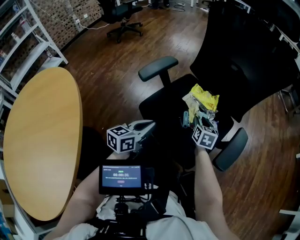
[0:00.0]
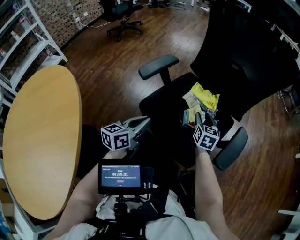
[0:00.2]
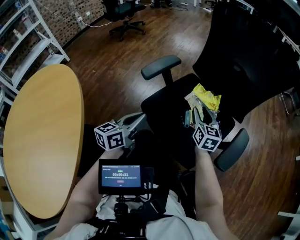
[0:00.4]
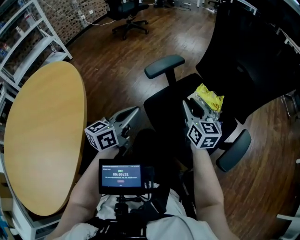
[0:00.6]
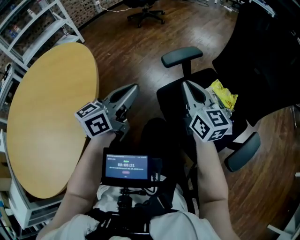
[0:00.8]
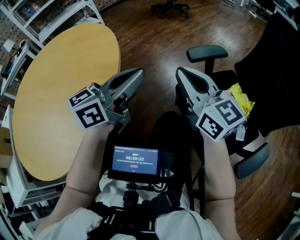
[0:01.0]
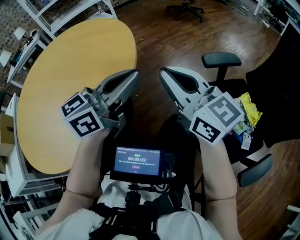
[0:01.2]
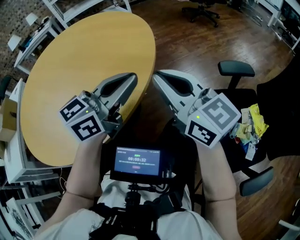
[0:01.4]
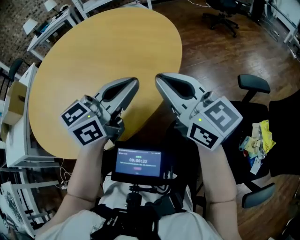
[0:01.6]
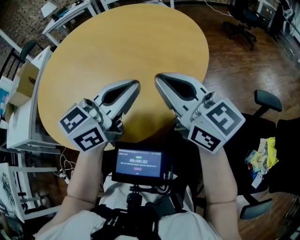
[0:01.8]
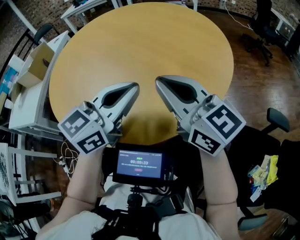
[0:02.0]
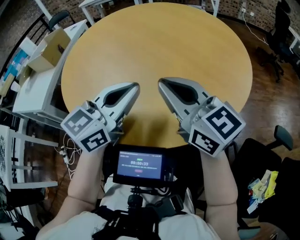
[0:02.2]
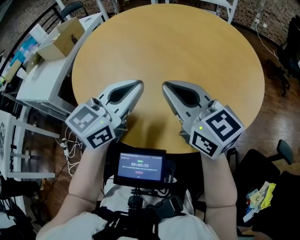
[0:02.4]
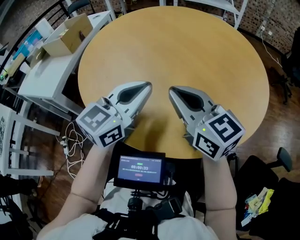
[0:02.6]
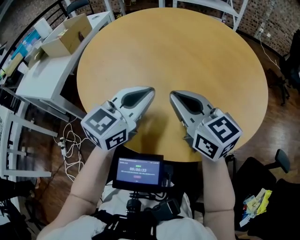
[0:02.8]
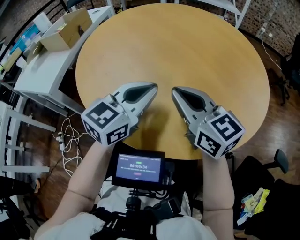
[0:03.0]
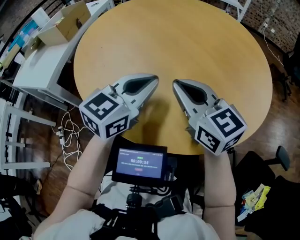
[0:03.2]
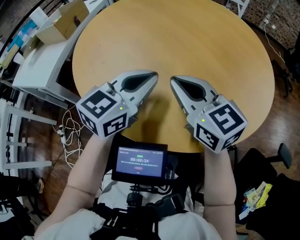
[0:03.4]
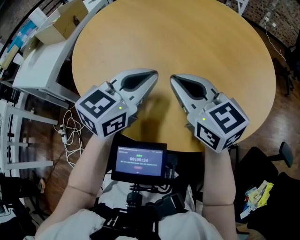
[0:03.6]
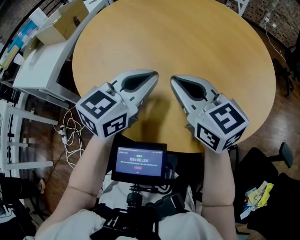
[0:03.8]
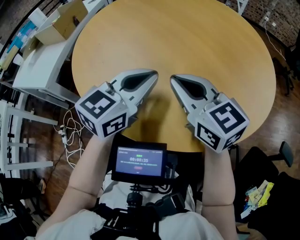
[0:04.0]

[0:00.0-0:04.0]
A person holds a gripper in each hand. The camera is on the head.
0.0 to 1.4 s: The left gripper moves some 35 cm, and turns by about 40 degrees. Meanwhile the right gripper changes place by roughly 60 cm, tilts its fingers about 40 degrees upward, and closes.
1.4 to 2.6 s: The left gripper moves about 40 cm, and swivels approximately 40 degrees. Meanwhile the right gripper ends up approximately 40 cm from where it was, and turns by roughly 30 degrees.
2.6 to 4.0 s: The grippers move only a little.

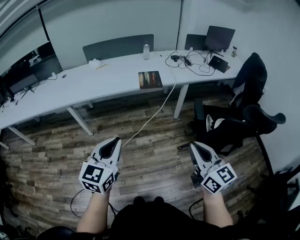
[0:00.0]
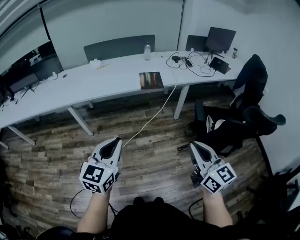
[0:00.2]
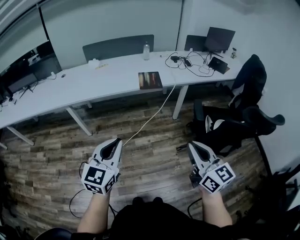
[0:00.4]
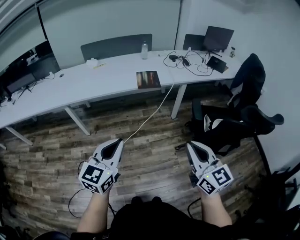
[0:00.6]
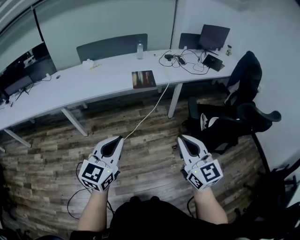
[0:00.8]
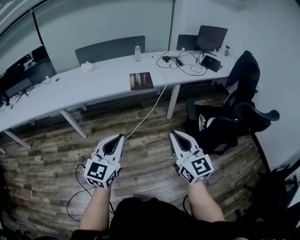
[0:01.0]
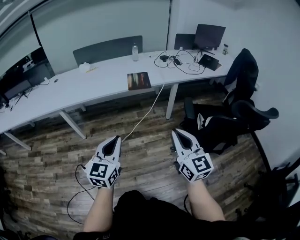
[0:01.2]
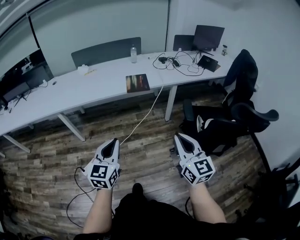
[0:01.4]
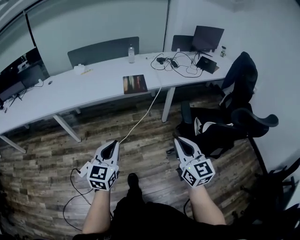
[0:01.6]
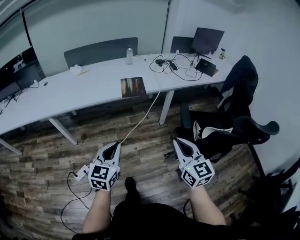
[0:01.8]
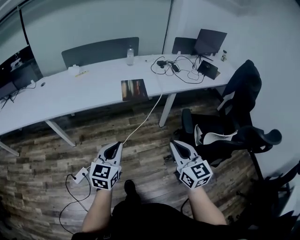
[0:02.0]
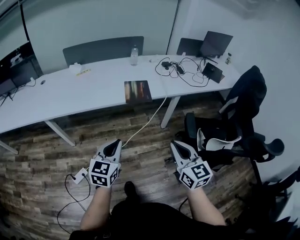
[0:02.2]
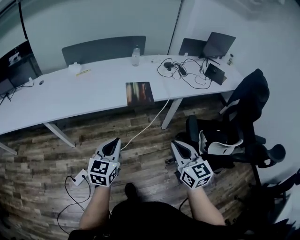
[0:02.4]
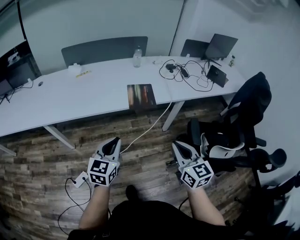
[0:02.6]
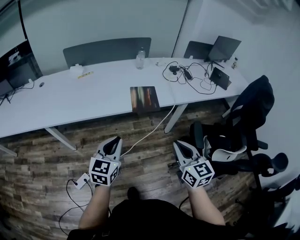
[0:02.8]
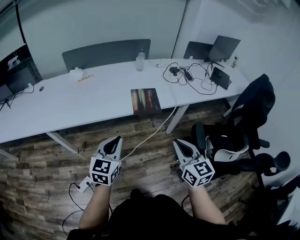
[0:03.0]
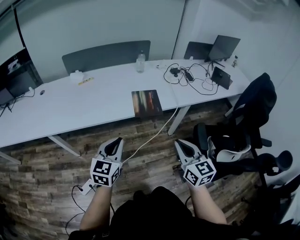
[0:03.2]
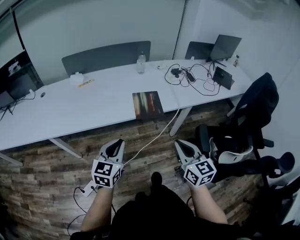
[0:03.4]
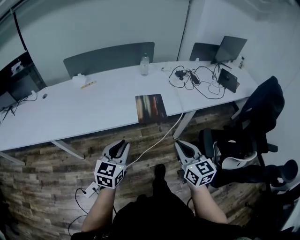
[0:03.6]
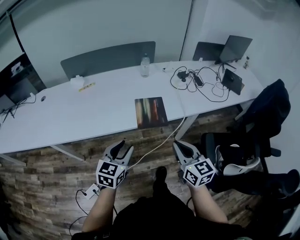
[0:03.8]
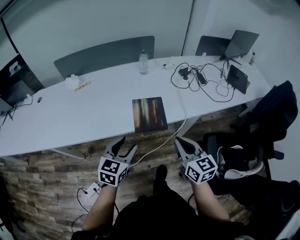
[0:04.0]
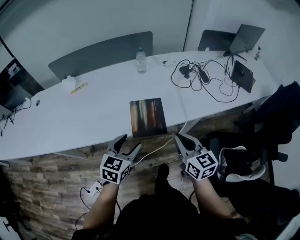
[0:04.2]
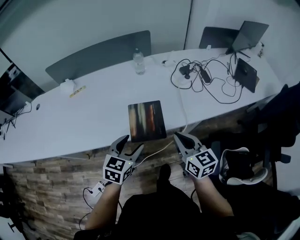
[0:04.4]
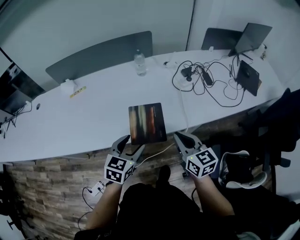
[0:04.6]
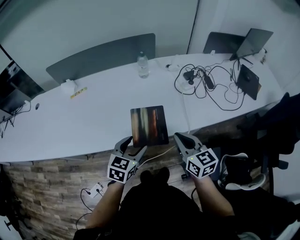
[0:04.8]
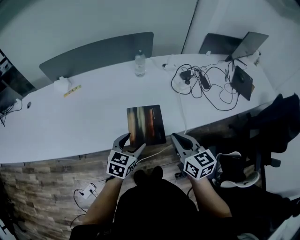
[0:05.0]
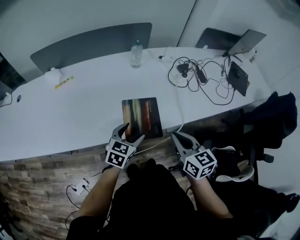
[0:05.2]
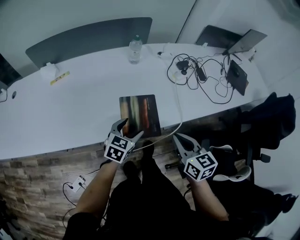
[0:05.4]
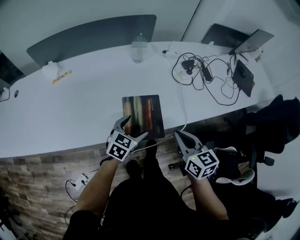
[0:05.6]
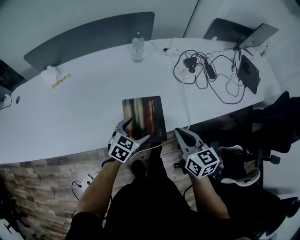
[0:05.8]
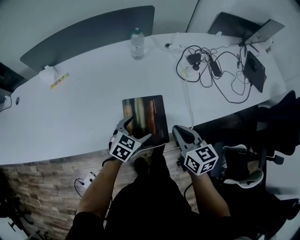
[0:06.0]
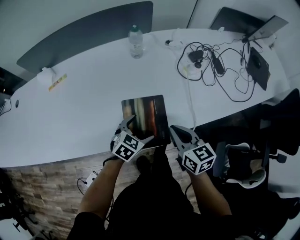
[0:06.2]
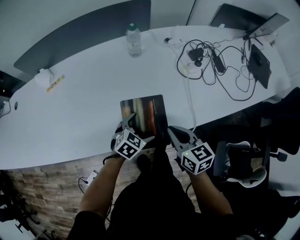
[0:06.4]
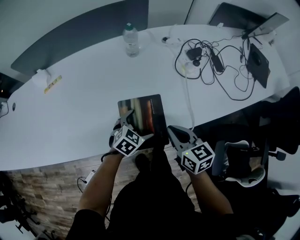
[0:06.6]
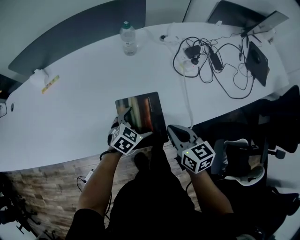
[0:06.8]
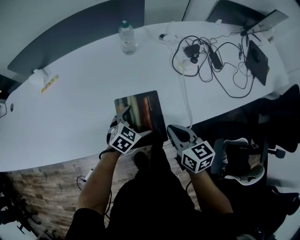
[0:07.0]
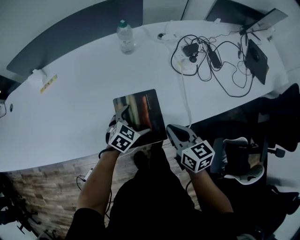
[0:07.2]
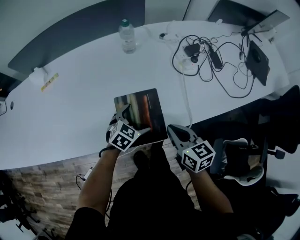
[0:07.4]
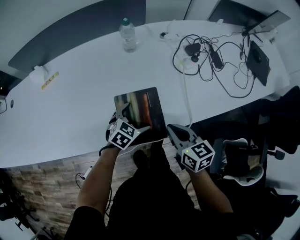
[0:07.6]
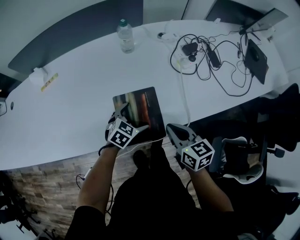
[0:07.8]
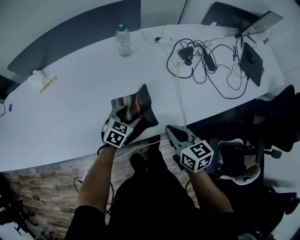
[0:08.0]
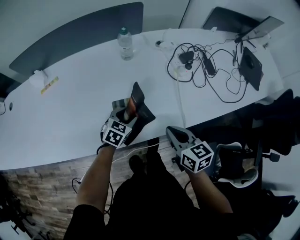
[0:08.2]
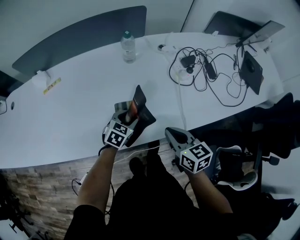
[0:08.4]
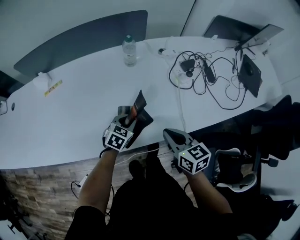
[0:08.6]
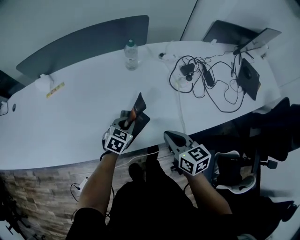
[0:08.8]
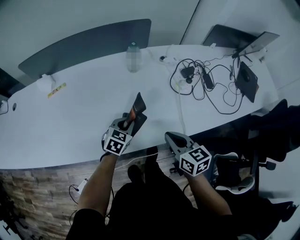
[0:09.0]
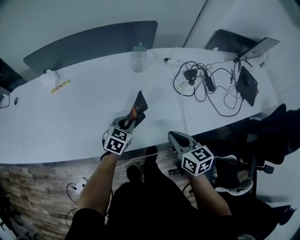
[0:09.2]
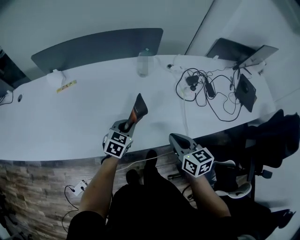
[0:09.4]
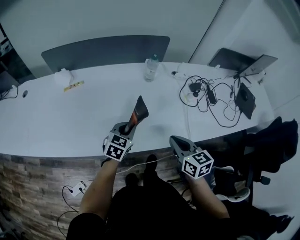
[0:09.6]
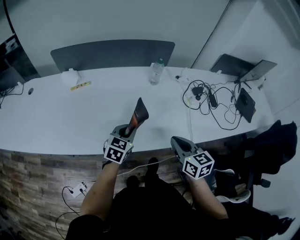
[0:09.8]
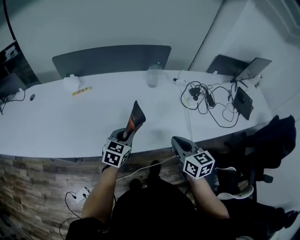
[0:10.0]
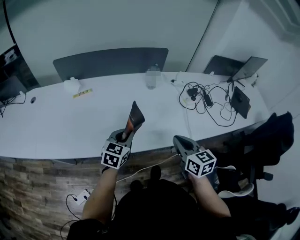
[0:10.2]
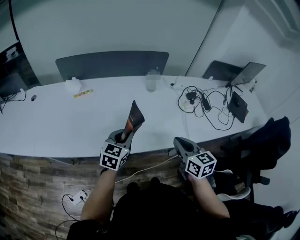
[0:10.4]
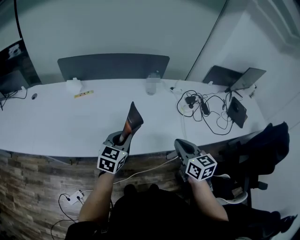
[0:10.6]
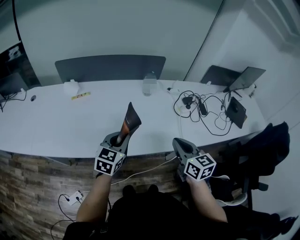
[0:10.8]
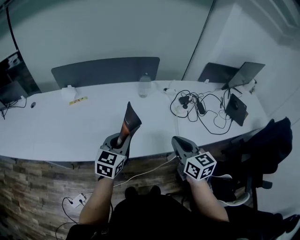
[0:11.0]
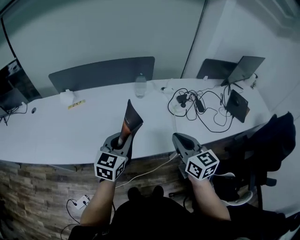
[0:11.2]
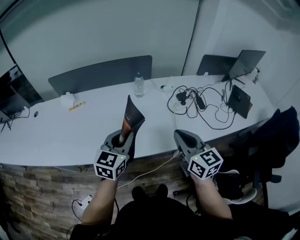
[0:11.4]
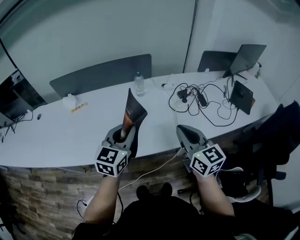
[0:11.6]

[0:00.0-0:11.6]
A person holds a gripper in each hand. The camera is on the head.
0.0 to 1.4 s: The left gripper travels downward and to the right by some 10 cm. The right gripper is displaced forward by some 5 cm.
1.4 to 2.8 s: Both grippers move forward, about 25 cm.
2.8 to 4.4 s: The left gripper heads forward and to the right, covering roughly 30 cm, and opens its fingers. Meanwhile the right gripper is displaced forward by roughly 30 cm.
4.4 to 5.8 s: The left gripper is displaced downward and forward by approximately 15 cm. Meanwhile the right gripper heads forward and downward, covering about 10 cm.
5.8 to 7.2 s: The right gripper shifts approximately 5 cm downward. The left gripper heads downward and forward, covering roughly 10 cm.
7.2 to 8.8 s: The left gripper ends up roughly 5 cm from where it was, and closes its fingers.
8.8 to 10.2 s: The right gripper travels upward, backward and to the left by approximately 15 cm; the left gripper travels upward, to the left and backward by roughly 20 cm, and turns by about 20 degrees.
10.2 to 11.6 s: The right gripper heads to the right and upward, covering roughly 15 cm; the left gripper moves upward and to the right, some 20 cm.

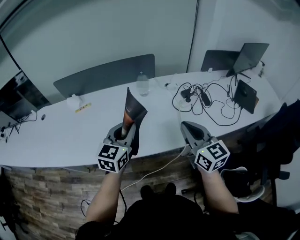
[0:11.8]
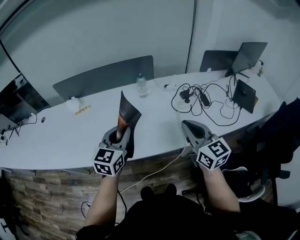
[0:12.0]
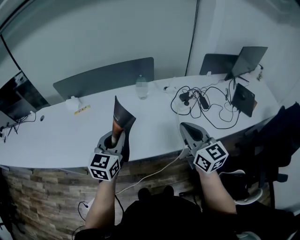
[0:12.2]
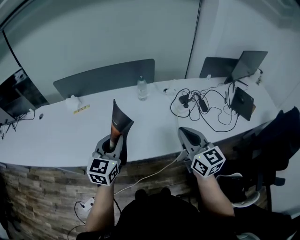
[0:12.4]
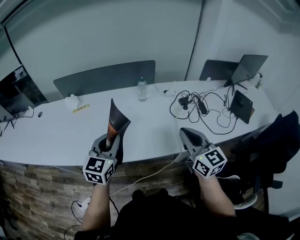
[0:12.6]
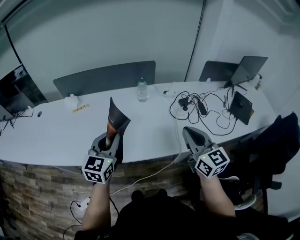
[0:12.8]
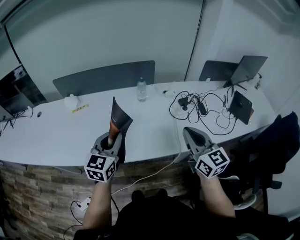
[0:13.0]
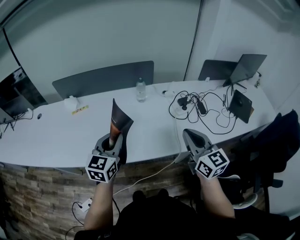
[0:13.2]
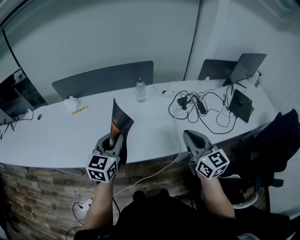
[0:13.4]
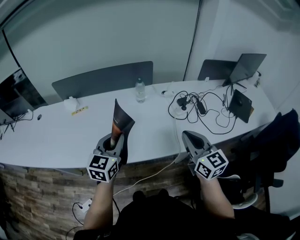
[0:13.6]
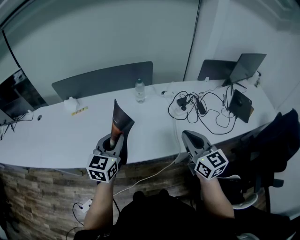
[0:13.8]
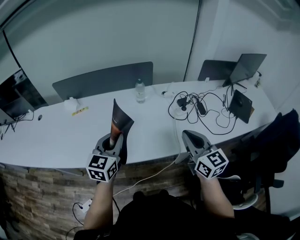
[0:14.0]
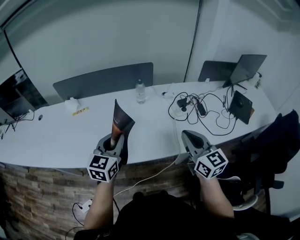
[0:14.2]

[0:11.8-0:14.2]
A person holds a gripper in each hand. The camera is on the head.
11.8 to 13.0 s: The left gripper heads to the left, covering some 5 cm.
13.0 to 14.2 s: The grippers move only a little.

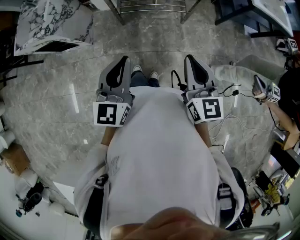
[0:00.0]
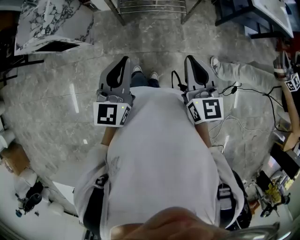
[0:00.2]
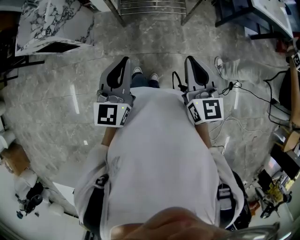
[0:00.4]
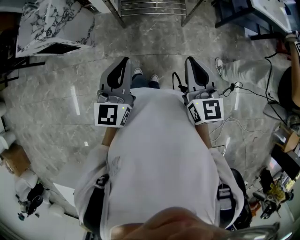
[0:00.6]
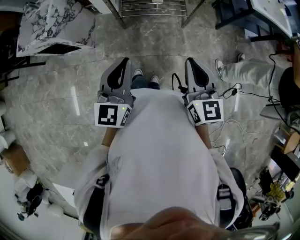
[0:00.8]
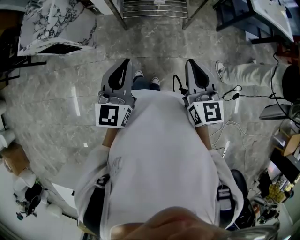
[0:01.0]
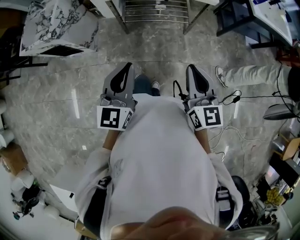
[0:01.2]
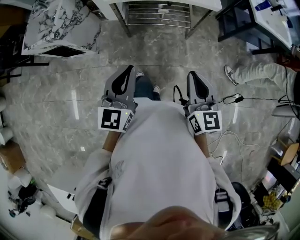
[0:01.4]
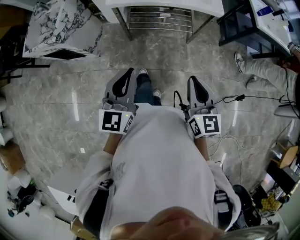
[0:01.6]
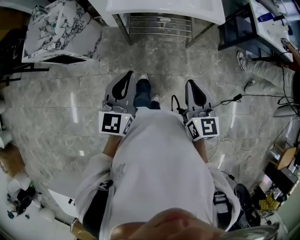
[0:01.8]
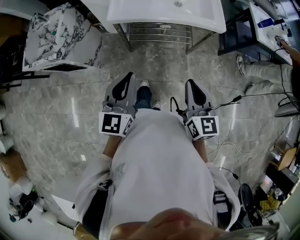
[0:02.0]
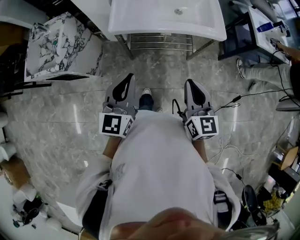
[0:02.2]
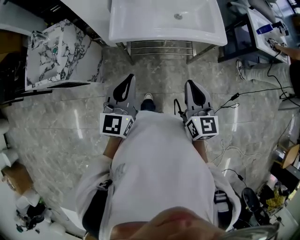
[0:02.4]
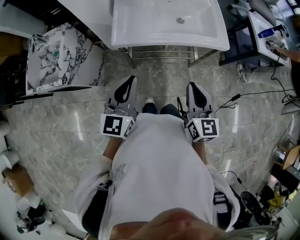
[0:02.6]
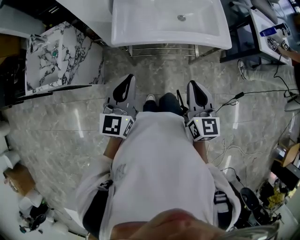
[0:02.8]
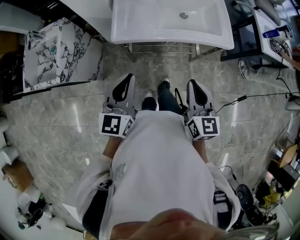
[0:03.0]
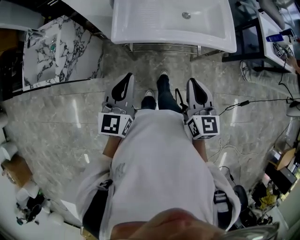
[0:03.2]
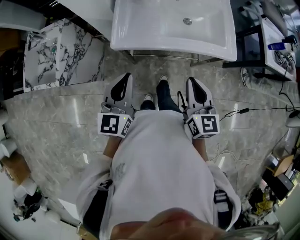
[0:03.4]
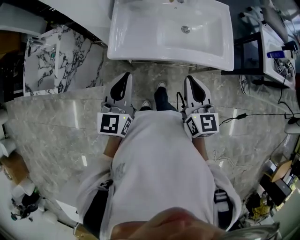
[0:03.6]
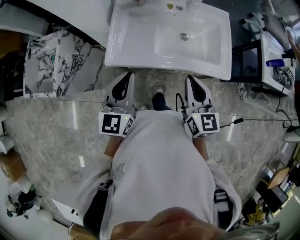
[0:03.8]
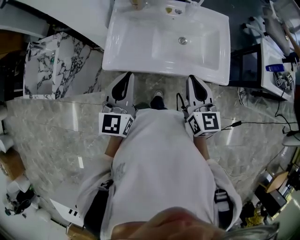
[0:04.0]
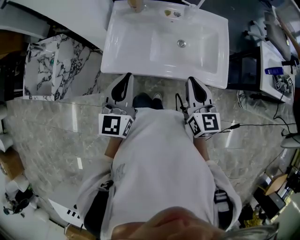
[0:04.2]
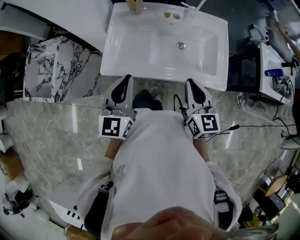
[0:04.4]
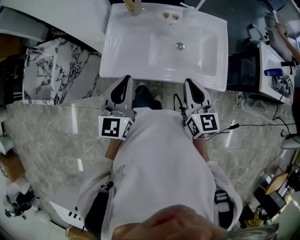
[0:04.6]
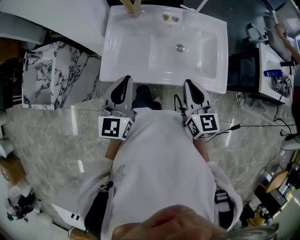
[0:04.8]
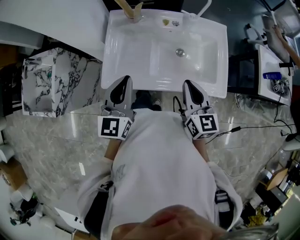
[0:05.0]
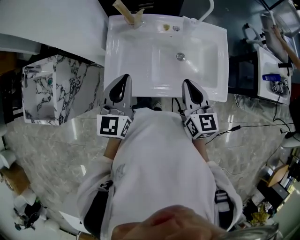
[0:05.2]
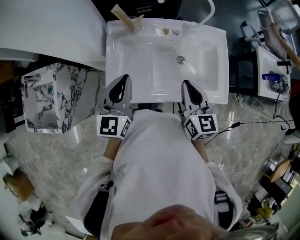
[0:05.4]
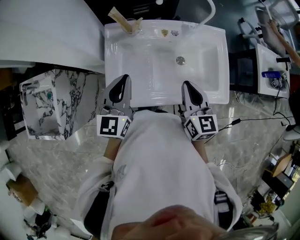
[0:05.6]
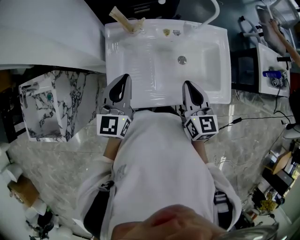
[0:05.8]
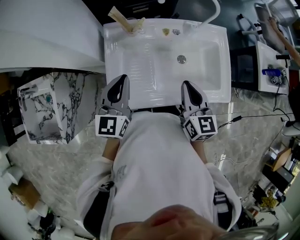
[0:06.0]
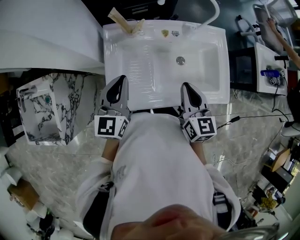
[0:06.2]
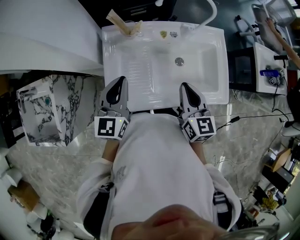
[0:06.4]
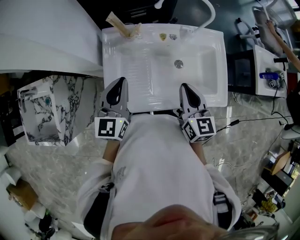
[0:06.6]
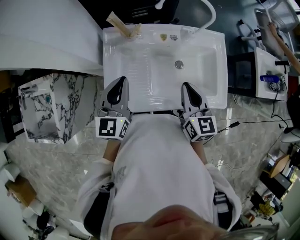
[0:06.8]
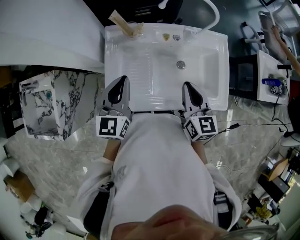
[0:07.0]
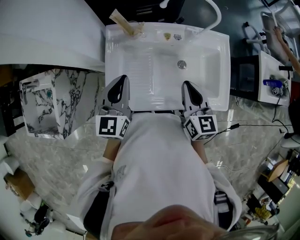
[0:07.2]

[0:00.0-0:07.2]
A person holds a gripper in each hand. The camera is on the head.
0.0 to 1.4 s: There are only small adjustments of the grippers.
1.4 to 2.8 s: Both grippers move forward, approximately 25 cm.
2.8 to 4.4 s: The right gripper moves forward, approximately 25 cm, while the left gripper moves forward and to the right, some 20 cm.
4.4 to 5.8 s: The left gripper travels forward by roughly 20 cm, while the right gripper is displaced forward and to the left by some 15 cm.
5.8 to 7.2 s: The grippers make only small movements.
